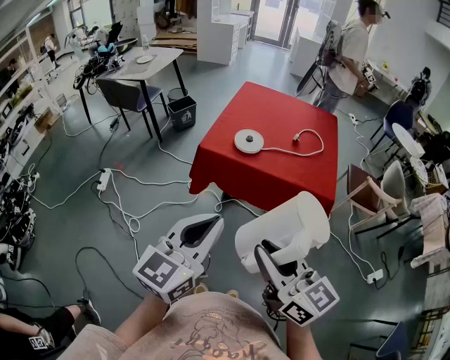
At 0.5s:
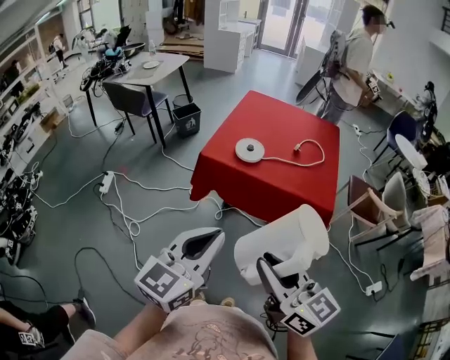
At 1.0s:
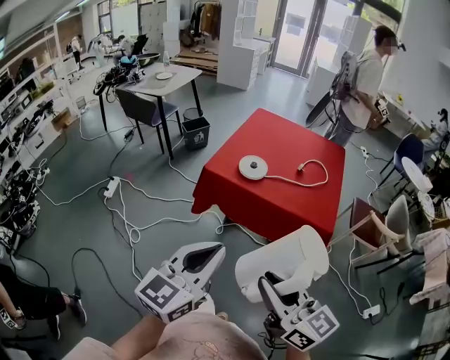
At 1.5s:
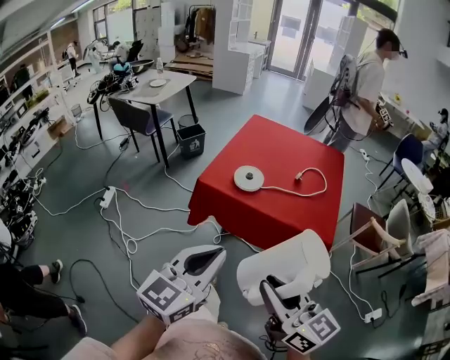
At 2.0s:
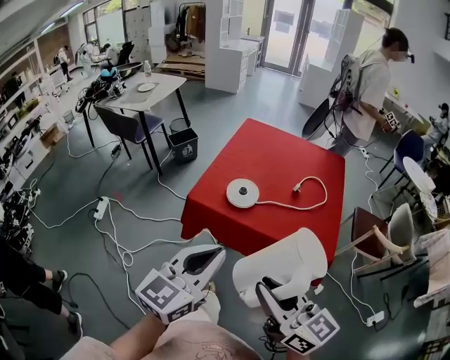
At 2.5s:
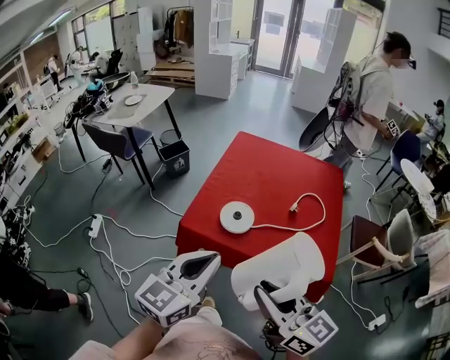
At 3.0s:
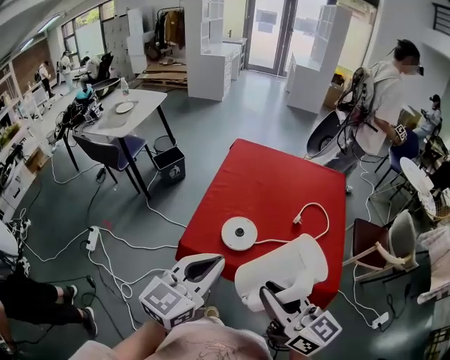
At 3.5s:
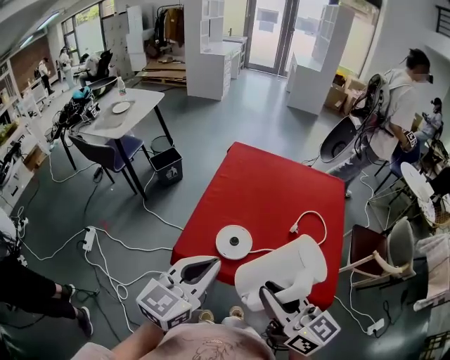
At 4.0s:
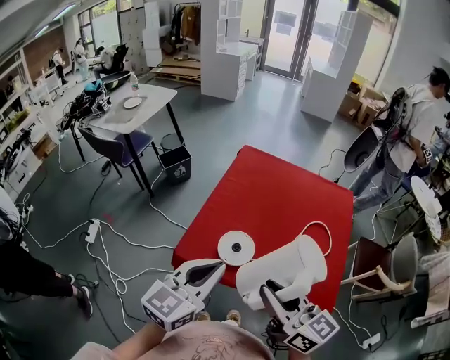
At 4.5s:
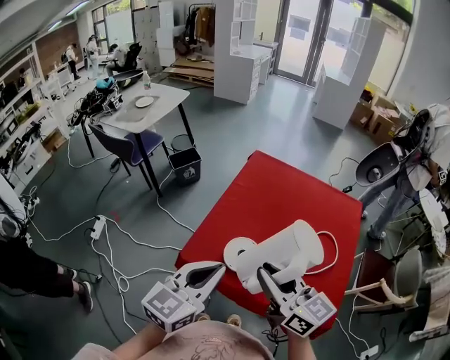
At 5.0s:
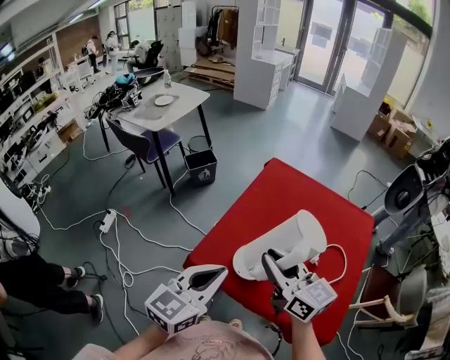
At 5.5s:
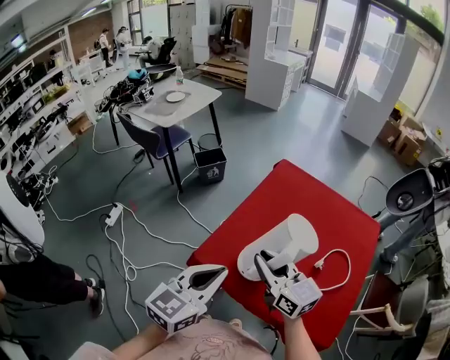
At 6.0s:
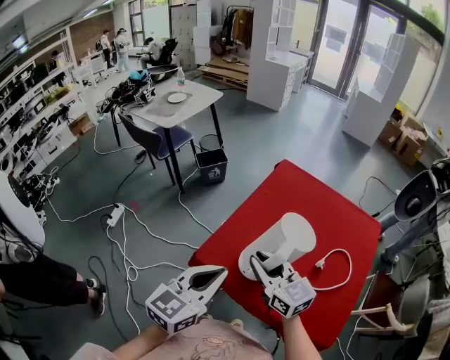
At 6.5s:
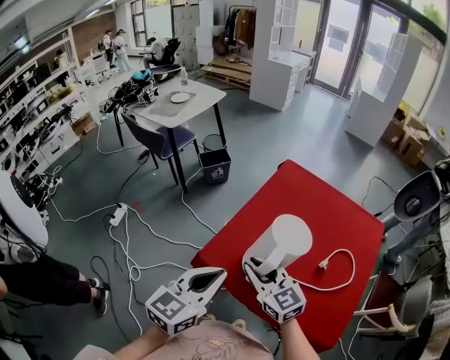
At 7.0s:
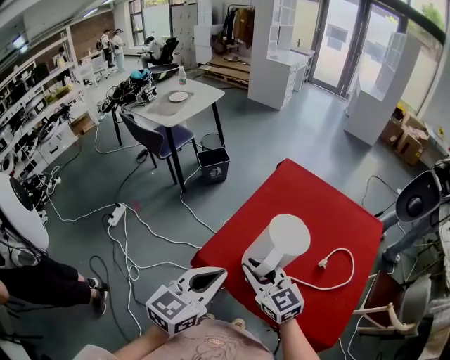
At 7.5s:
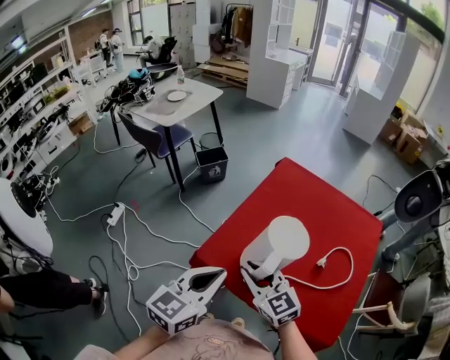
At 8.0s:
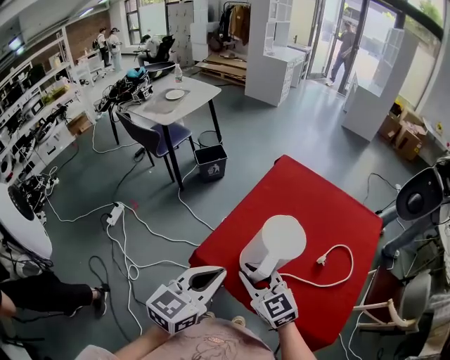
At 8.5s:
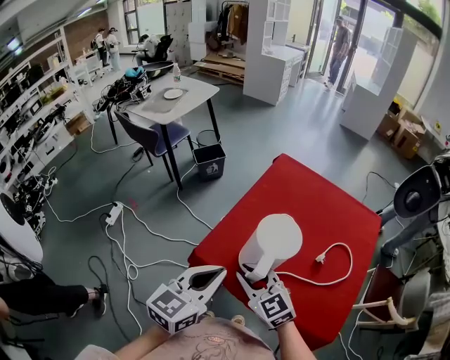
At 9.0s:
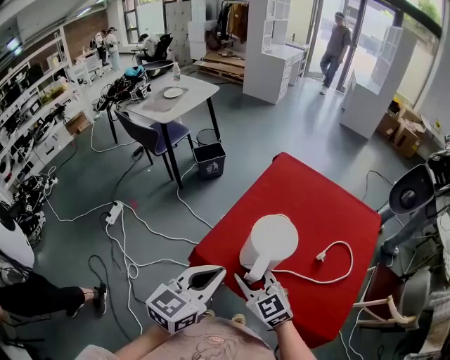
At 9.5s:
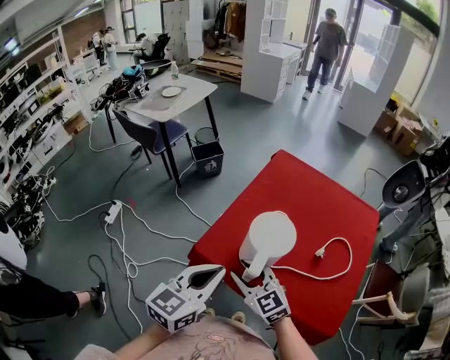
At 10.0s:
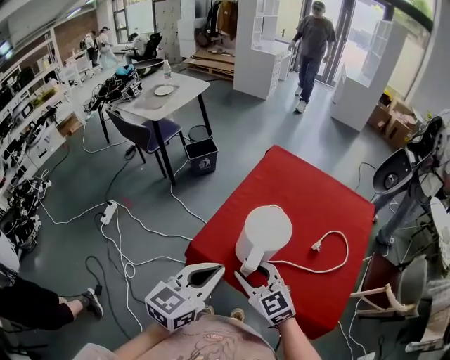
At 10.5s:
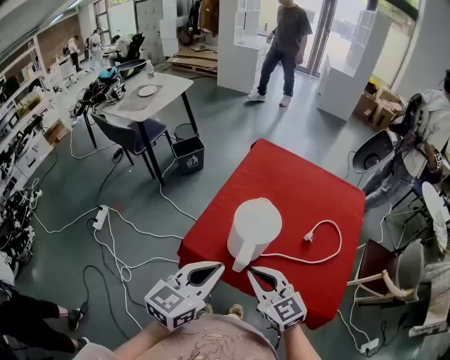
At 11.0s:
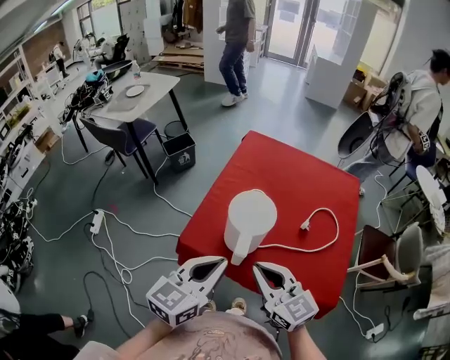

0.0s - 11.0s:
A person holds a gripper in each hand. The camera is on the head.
0.0s - 2.0s: Both grippers move forward and to the right, approximately 15 cm.
2.0s - 3.5s: Both grippers move forward, roughly 20 cm.
3.5s - 5.5s: The right gripper shifts about 20 cm forward and downward. The left gripper moves some 5 cm.
5.5s - 7.5s: The right gripper ends up approximately 5 cm from where it was, and rotates approximately 20 degrees.
7.5s - 9.0s: The grippers move only a little.
9.0s - 11.0s: The right gripper travels to the right, upward and backward by roughly 10 cm, changes its angle by some 20 degrees, and closes up.

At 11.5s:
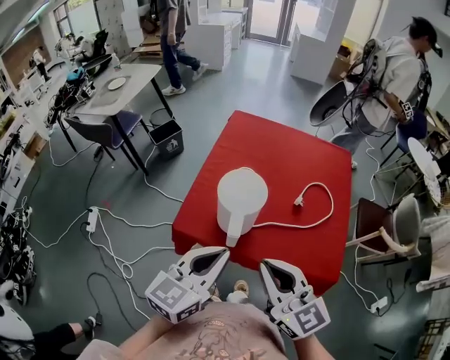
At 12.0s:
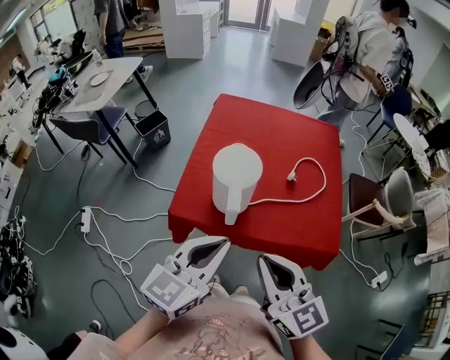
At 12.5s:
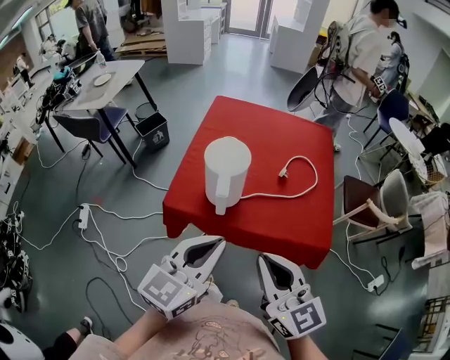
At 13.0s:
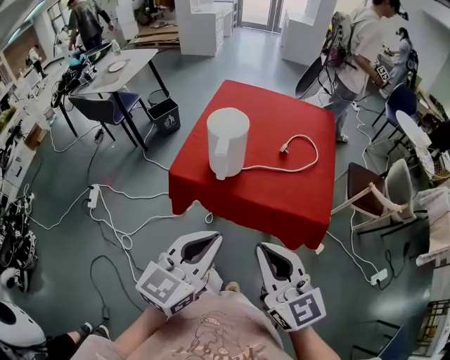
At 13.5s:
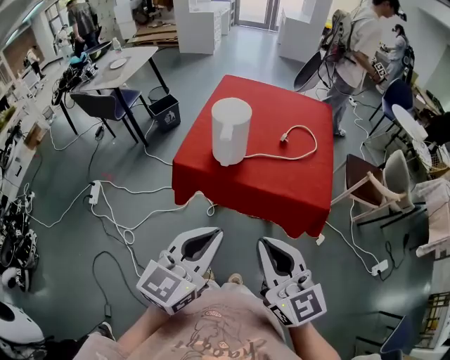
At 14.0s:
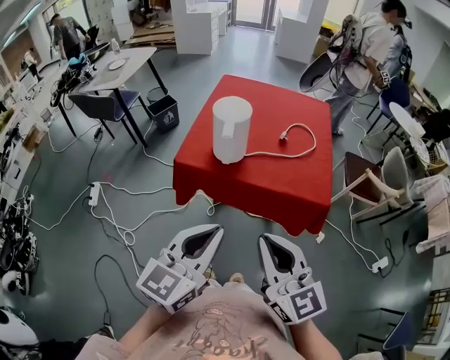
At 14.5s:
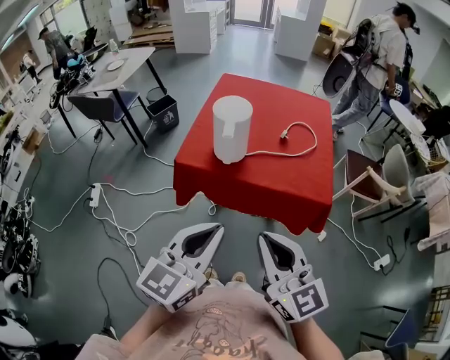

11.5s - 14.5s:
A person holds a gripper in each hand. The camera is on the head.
11.5s - 13.0s: Both grippers travel together backward, about 20 cm.
13.0s - 14.5s: The left gripper ends up roughly 5 cm from where it was, while the right gripper moves about 5 cm.

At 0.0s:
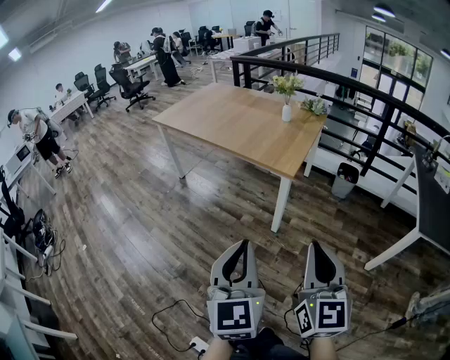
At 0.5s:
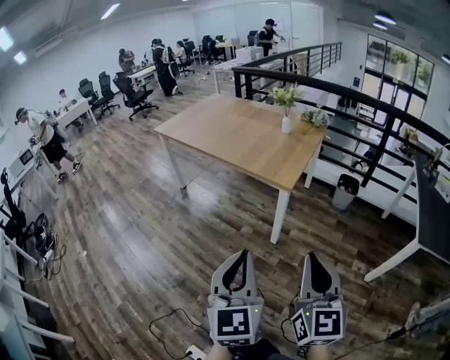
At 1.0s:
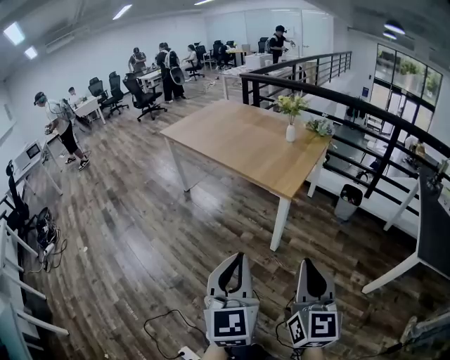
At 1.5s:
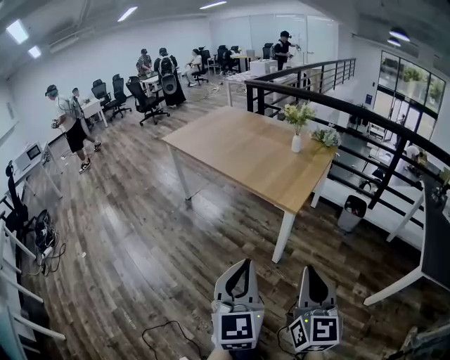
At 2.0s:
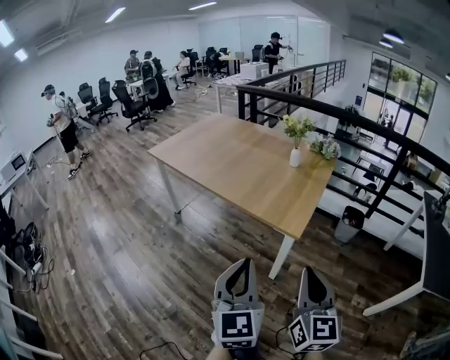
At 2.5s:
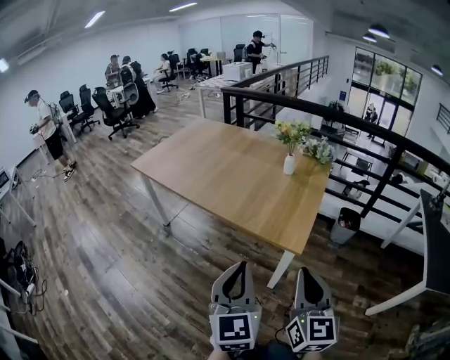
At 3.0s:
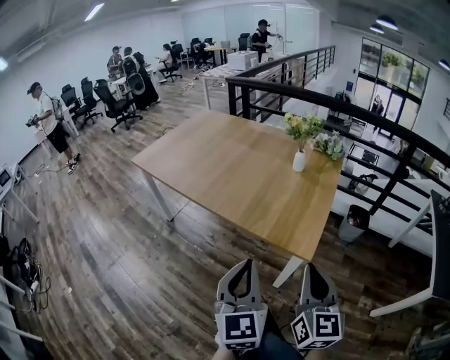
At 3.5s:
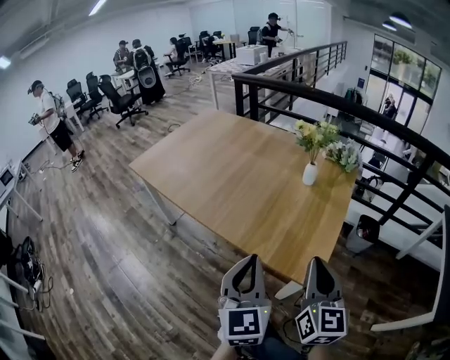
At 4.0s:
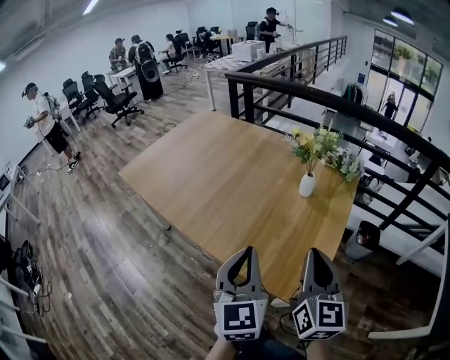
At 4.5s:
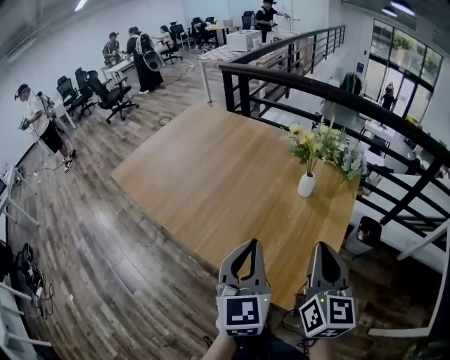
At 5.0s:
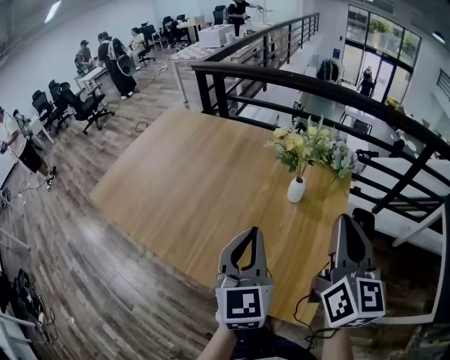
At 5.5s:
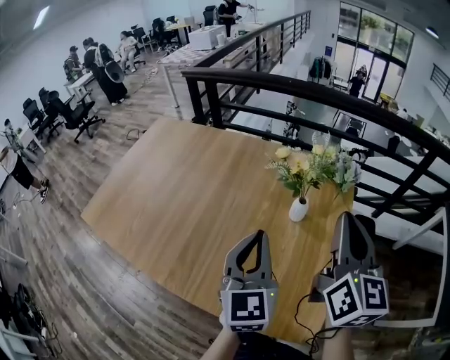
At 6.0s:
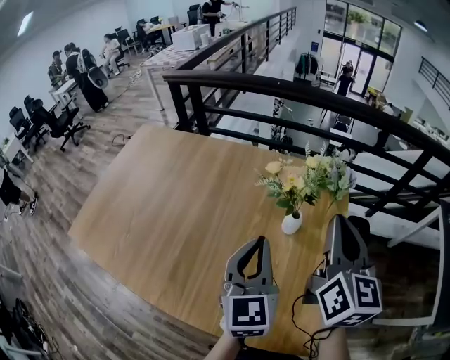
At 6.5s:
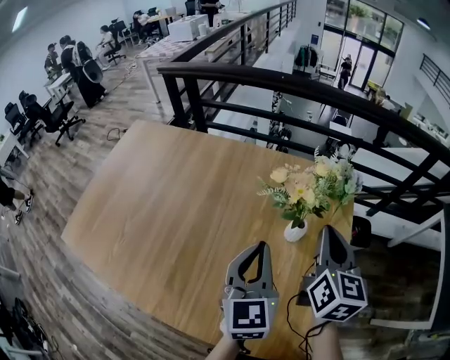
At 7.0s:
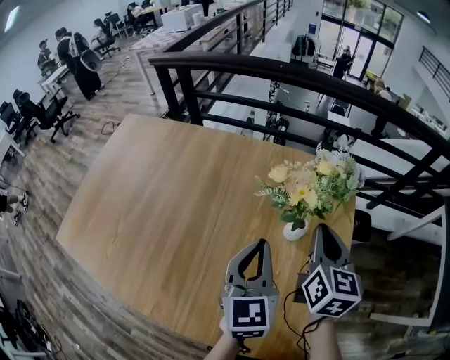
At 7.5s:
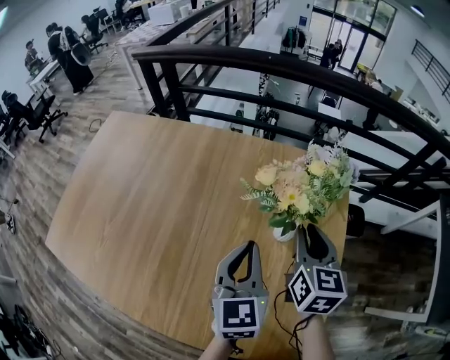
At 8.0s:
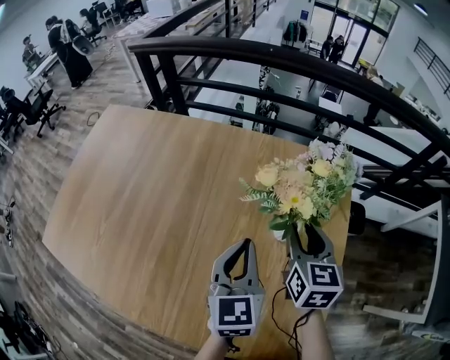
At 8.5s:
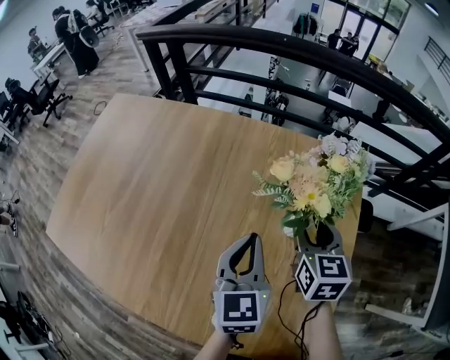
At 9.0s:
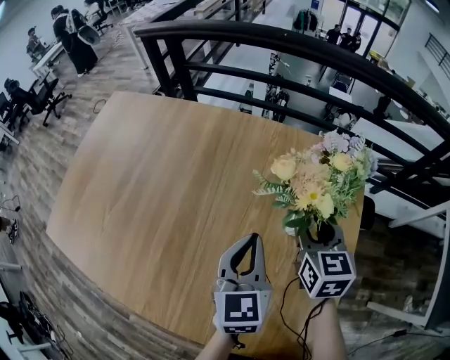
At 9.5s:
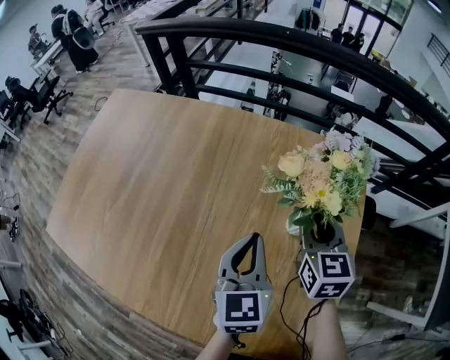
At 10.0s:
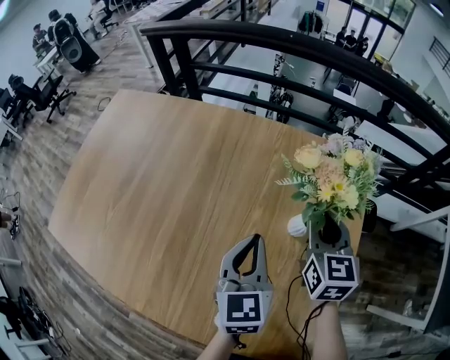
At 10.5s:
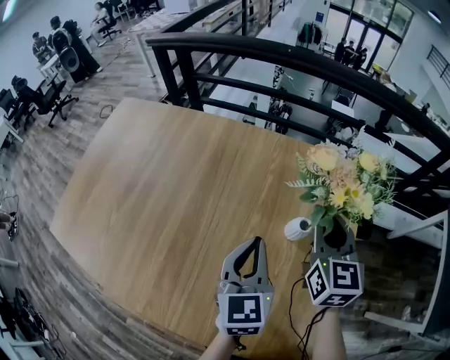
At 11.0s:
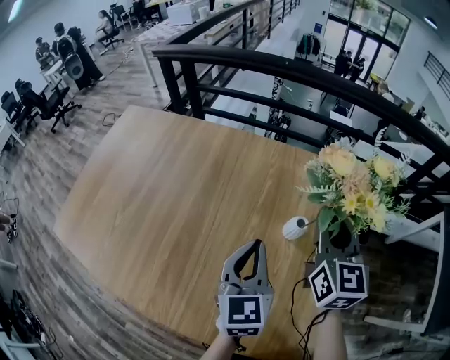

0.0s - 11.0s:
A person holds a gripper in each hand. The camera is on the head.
0.0s - 2.0s: Both grippers move forward, approximately 20 cm.
2.0s - 3.5s: Both grippers travel together forward, some 30 cm.
3.5s - 5.5s: Both grippers move forward, roughly 35 cm.
5.5s - 7.5s: The left gripper moves forward and downward, roughly 15 cm. Meanwhile the right gripper travels downward and forward by about 25 cm, swivels roughly 20 degrees, and opens up.
7.5s - 9.0s: The right gripper shifts by some 5 cm, and opens up.
9.0s - 11.0s: The right gripper goes about 15 cm upward, swivels about 20 degrees, and closes its fingers, while the left gripper shifts by about 5 cm.

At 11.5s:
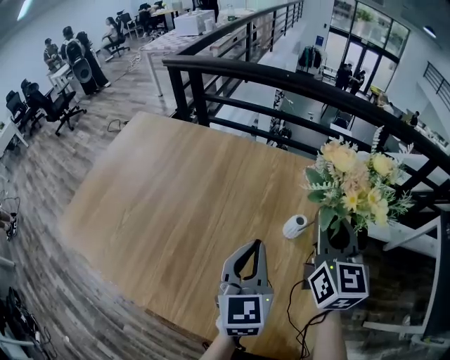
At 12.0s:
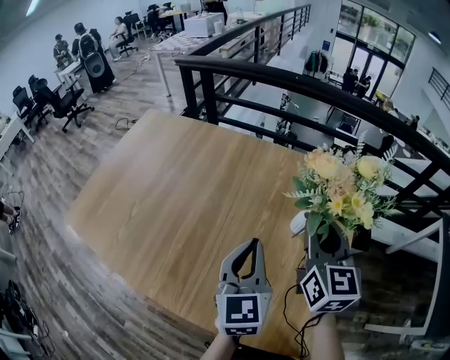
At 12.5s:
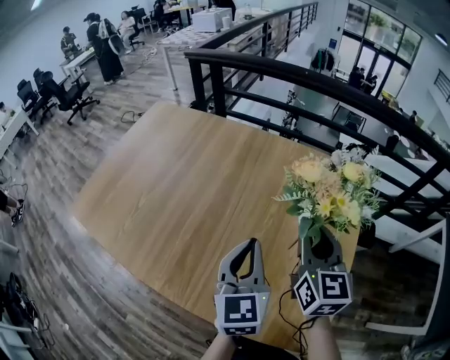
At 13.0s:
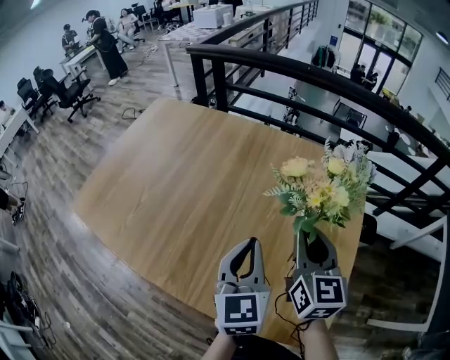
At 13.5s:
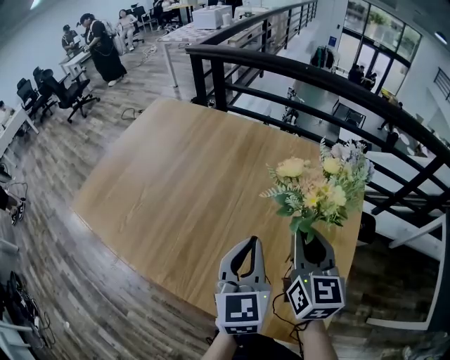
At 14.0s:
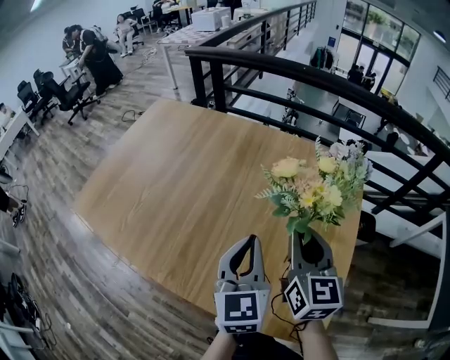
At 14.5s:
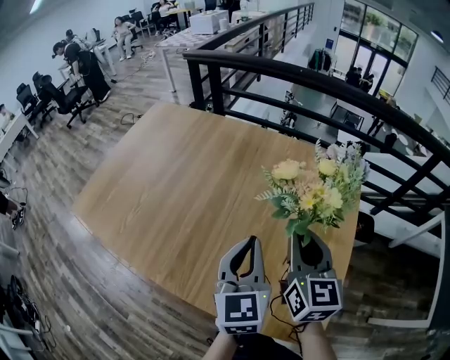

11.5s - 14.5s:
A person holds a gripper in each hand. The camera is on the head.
11.5s - 13.0s: The left gripper goes roughly 10 cm to the left and backward. Meanwhile the right gripper heads to the left, backward and downward, covering some 15 cm.
13.0s - 14.5s: The grippers move only a little.
